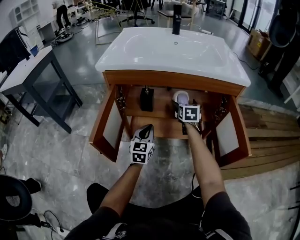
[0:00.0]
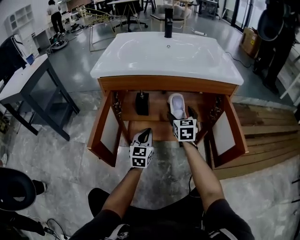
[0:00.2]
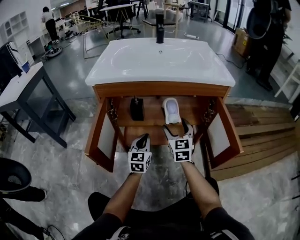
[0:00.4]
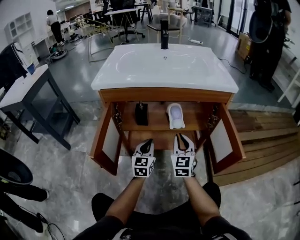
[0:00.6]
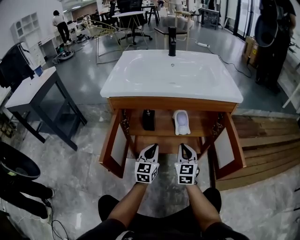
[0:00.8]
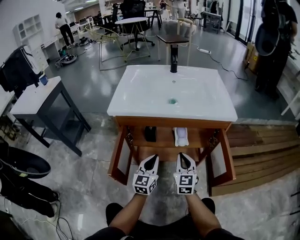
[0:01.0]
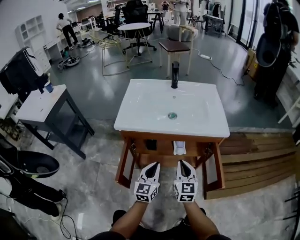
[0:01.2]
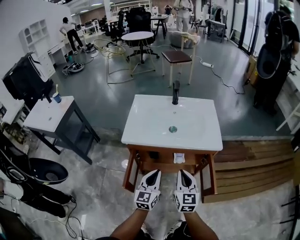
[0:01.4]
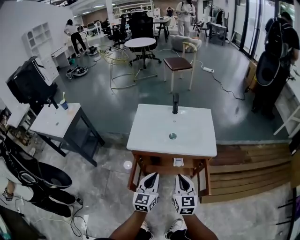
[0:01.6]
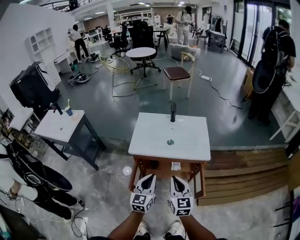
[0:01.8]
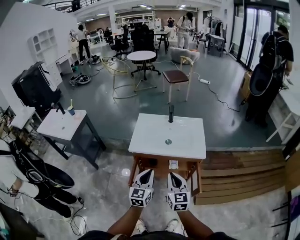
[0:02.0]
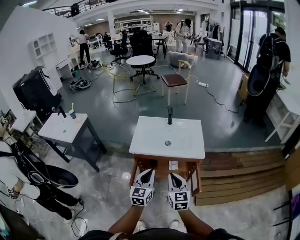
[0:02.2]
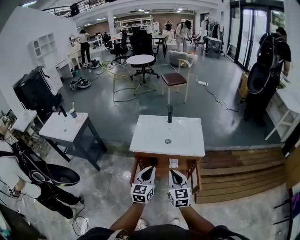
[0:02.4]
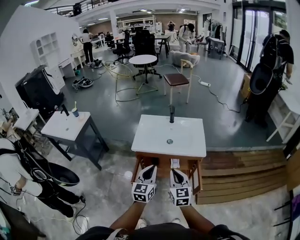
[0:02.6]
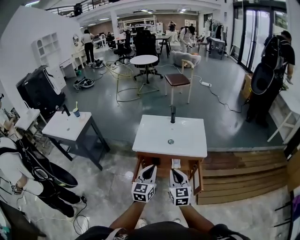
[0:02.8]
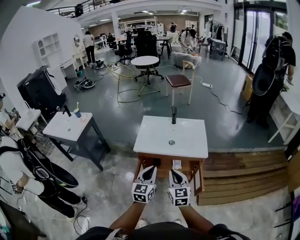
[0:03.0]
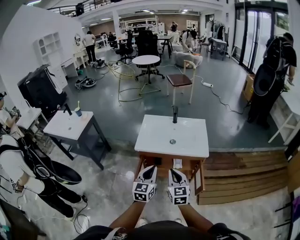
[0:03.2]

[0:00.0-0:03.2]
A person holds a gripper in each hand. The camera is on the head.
0:00.0 to 0:01.6: The right gripper travels upward and backward by approximately 50 cm, and closes; the left gripper is displaced upward by roughly 50 cm.
0:01.6 to 0:03.2: The grippers both shift upward and backward by some 10 cm.

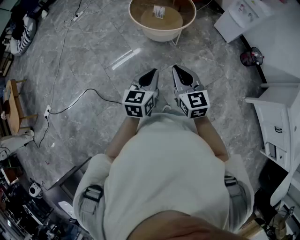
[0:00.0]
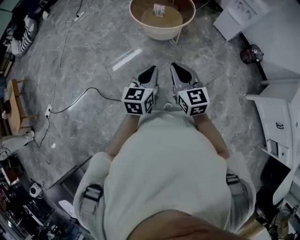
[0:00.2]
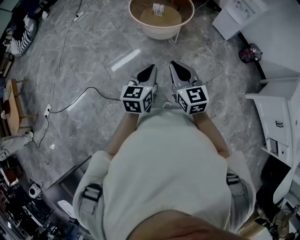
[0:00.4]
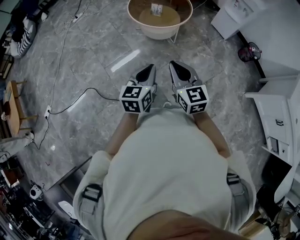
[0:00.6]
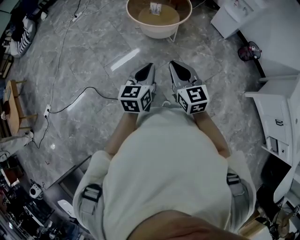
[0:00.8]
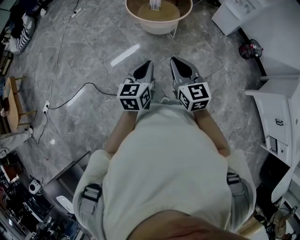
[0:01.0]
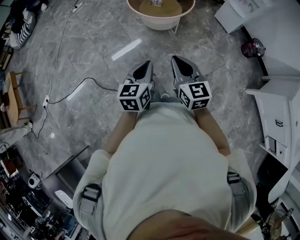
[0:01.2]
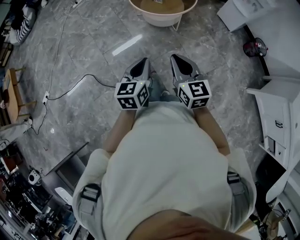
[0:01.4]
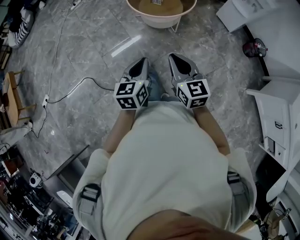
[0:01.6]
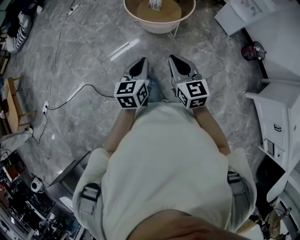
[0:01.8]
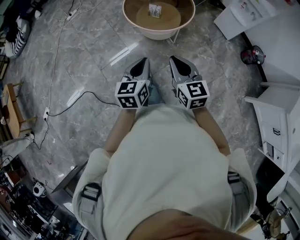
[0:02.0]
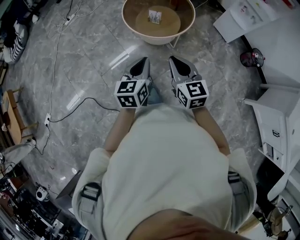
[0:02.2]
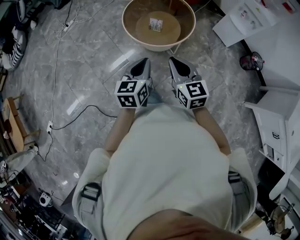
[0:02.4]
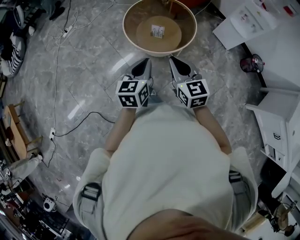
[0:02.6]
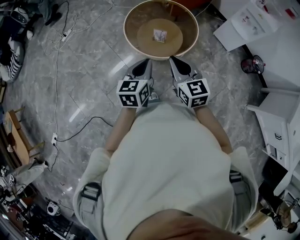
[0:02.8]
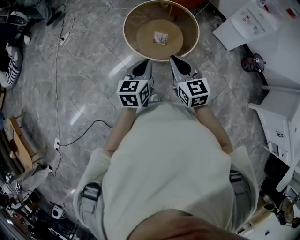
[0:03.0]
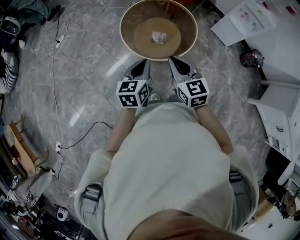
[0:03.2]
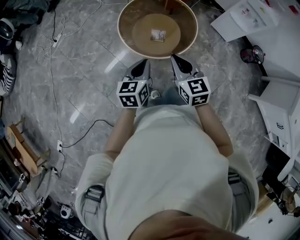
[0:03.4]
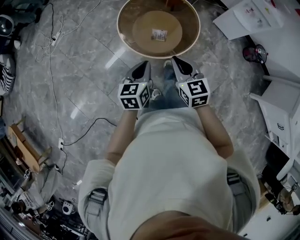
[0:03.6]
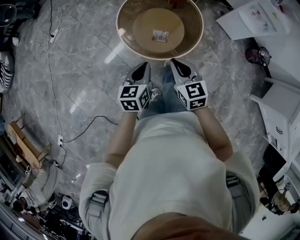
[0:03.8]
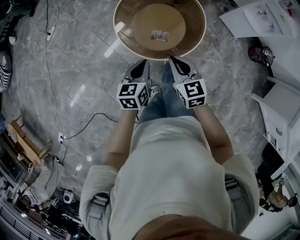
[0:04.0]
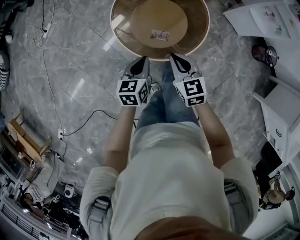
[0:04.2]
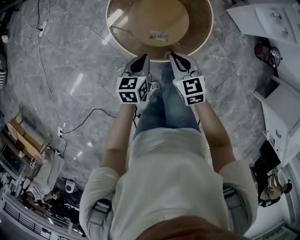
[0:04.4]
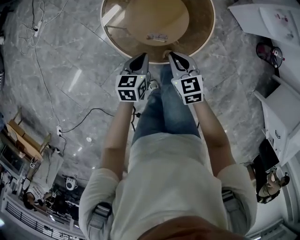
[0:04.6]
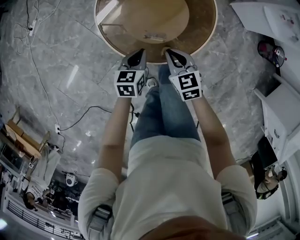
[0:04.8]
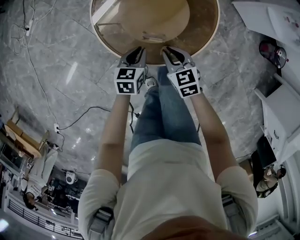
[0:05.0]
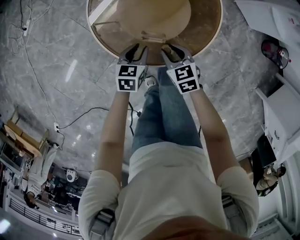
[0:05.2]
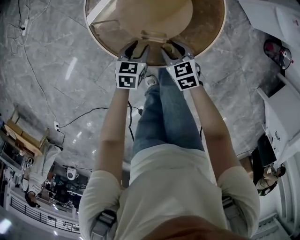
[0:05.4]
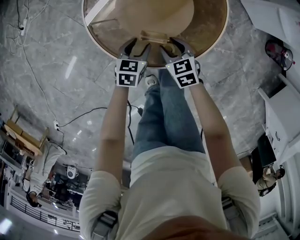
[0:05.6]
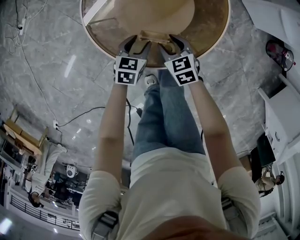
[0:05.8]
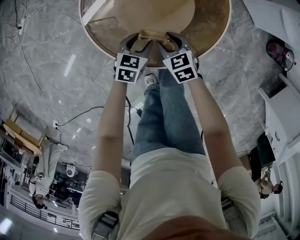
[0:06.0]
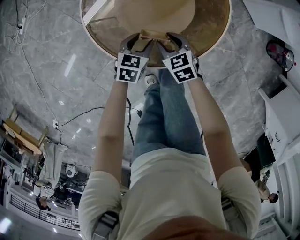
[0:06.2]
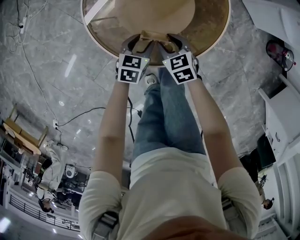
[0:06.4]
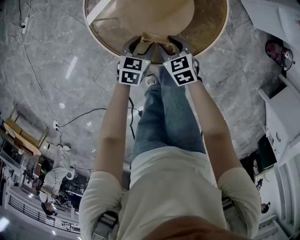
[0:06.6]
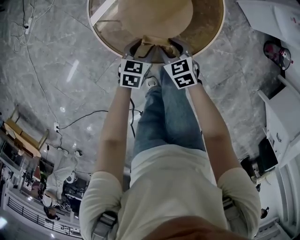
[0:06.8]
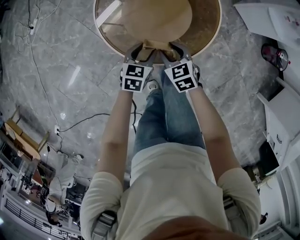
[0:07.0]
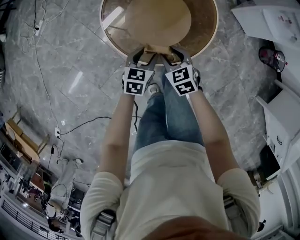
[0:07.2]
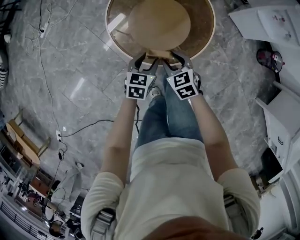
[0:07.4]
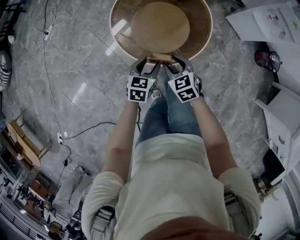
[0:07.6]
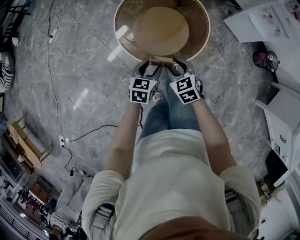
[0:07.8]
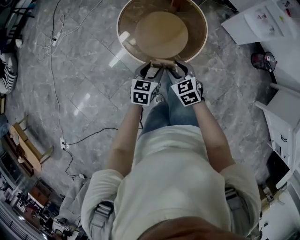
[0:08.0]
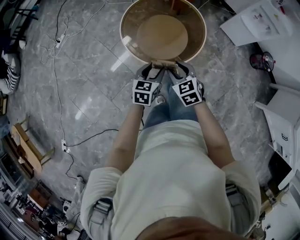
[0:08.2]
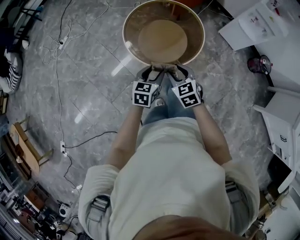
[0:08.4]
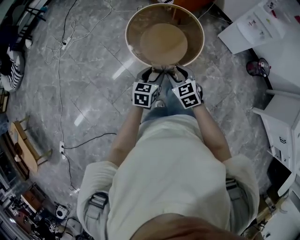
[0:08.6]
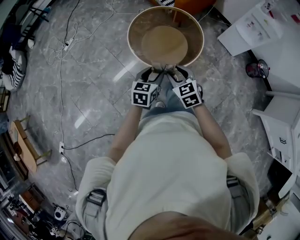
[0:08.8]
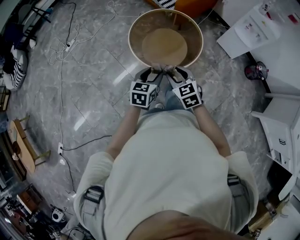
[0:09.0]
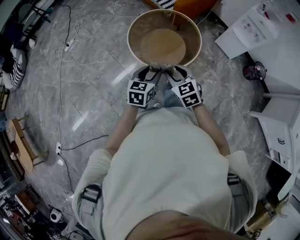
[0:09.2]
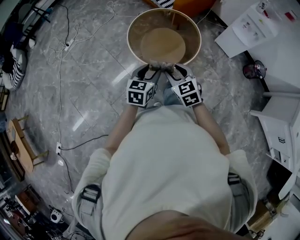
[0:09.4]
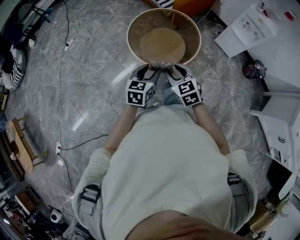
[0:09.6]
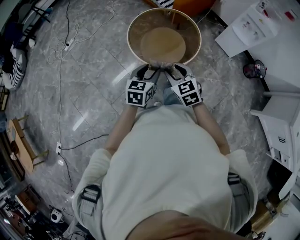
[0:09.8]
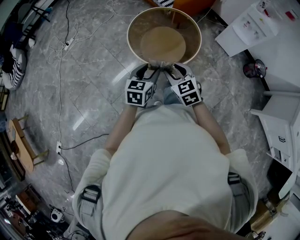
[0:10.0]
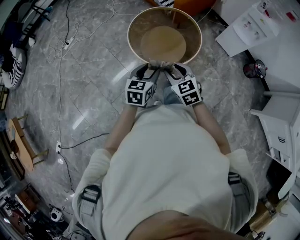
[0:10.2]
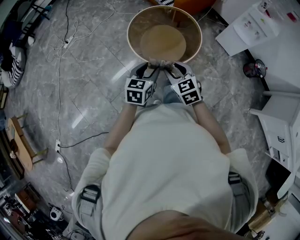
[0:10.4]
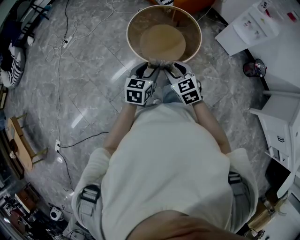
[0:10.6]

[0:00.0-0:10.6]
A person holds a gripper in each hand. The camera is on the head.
0:00.0 to 0:01.6: The grippers move only a little.
0:01.6 to 0:03.0: Both grippers move forward, some 35 cm.
0:03.0 to 0:04.6: Both grippers move downward and forward, some 30 cm. The left gripper rotates approximately 20 degrees; the right gripper rotates about 20 degrees.
0:04.6 to 0:06.0: The two grippers go about 20 cm downward. The right gripper opens up. Meanwhile the left gripper opens up.
0:06.0 to 0:07.6: Both grippers travel together upward and backward, approximately 20 cm.
0:07.6 to 0:09.0: The grippers both shift upward and backward by some 20 cm.
0:09.0 to 0:10.6: The grippers make only small movements.

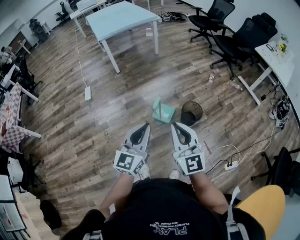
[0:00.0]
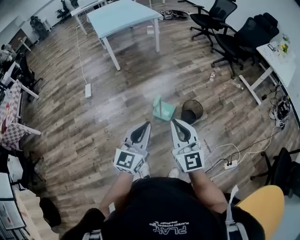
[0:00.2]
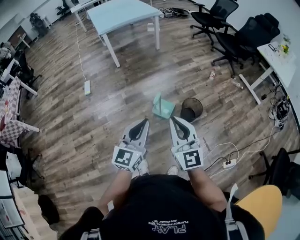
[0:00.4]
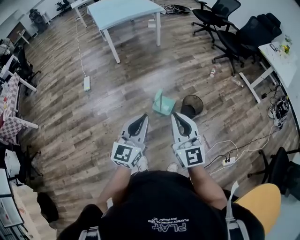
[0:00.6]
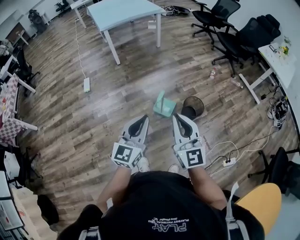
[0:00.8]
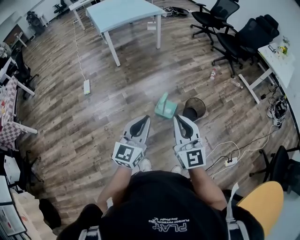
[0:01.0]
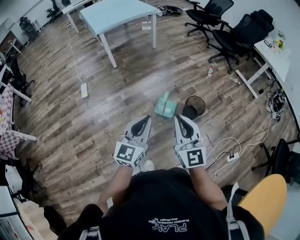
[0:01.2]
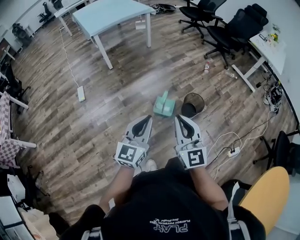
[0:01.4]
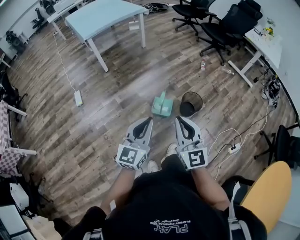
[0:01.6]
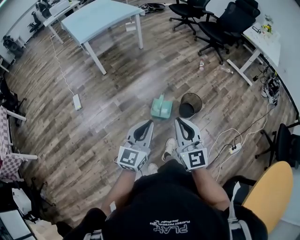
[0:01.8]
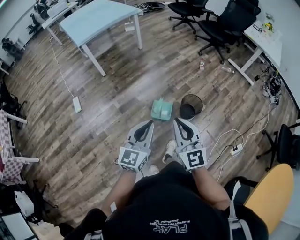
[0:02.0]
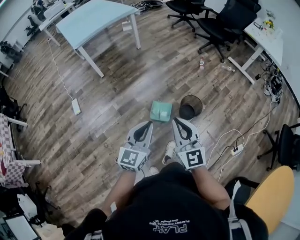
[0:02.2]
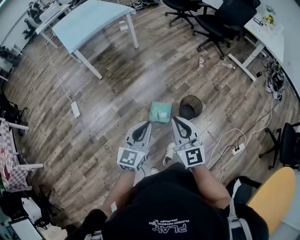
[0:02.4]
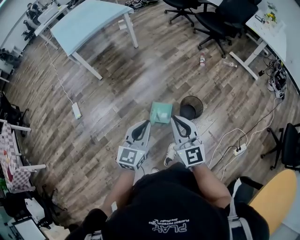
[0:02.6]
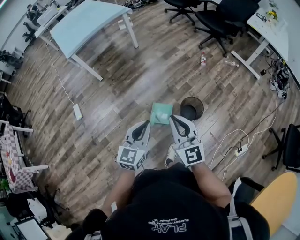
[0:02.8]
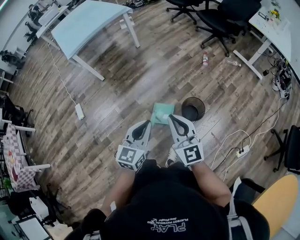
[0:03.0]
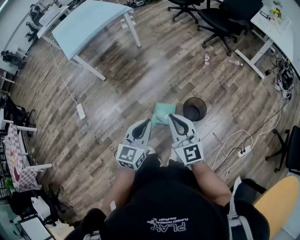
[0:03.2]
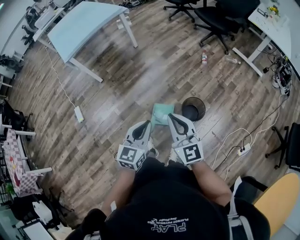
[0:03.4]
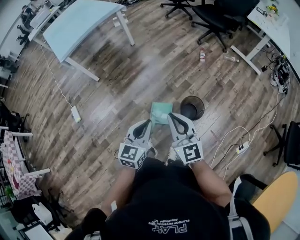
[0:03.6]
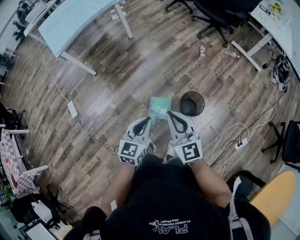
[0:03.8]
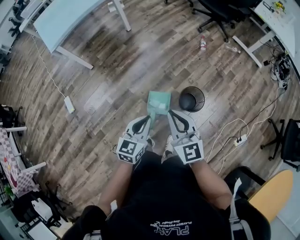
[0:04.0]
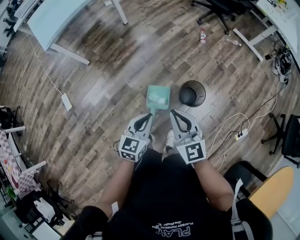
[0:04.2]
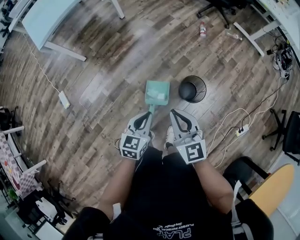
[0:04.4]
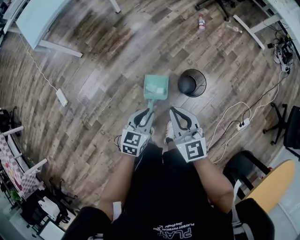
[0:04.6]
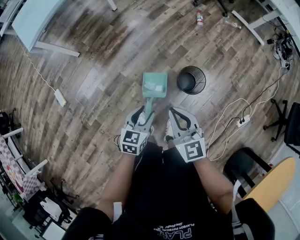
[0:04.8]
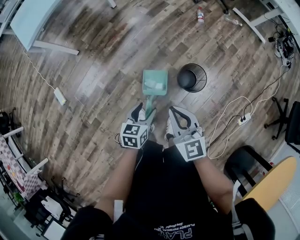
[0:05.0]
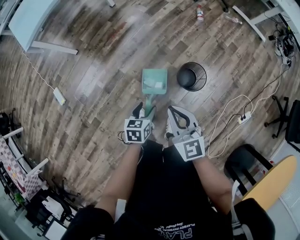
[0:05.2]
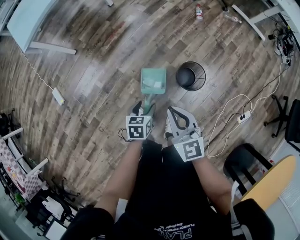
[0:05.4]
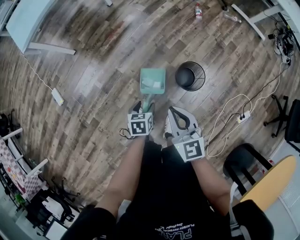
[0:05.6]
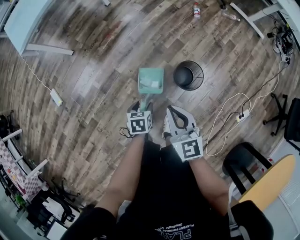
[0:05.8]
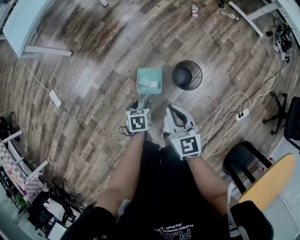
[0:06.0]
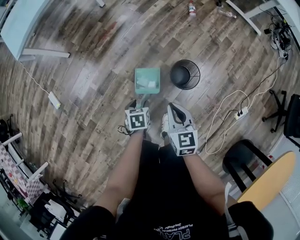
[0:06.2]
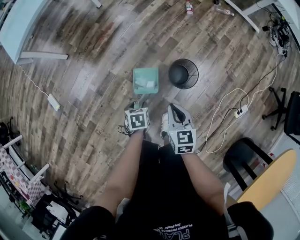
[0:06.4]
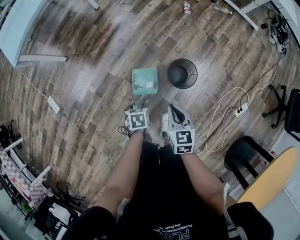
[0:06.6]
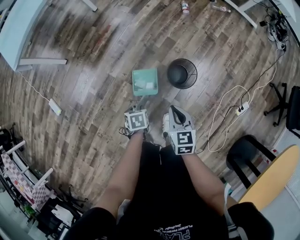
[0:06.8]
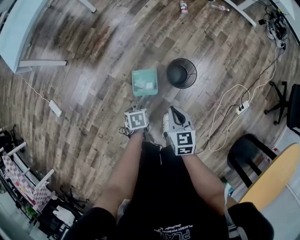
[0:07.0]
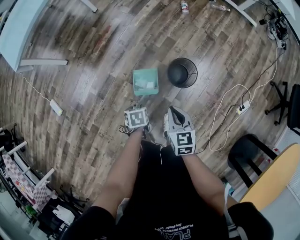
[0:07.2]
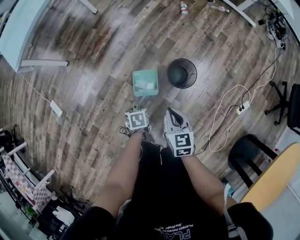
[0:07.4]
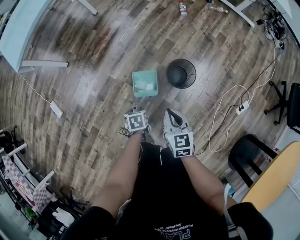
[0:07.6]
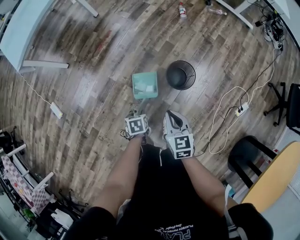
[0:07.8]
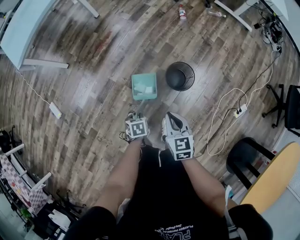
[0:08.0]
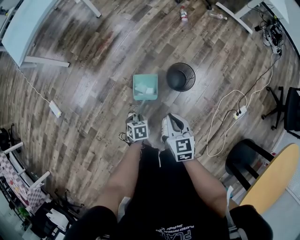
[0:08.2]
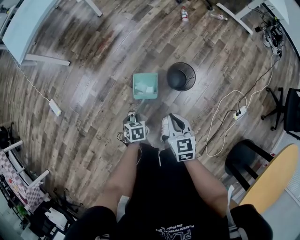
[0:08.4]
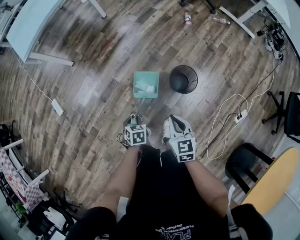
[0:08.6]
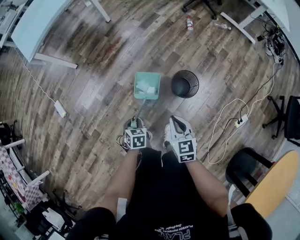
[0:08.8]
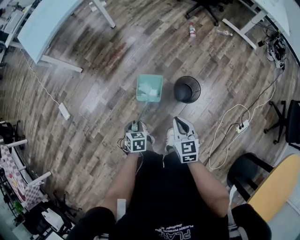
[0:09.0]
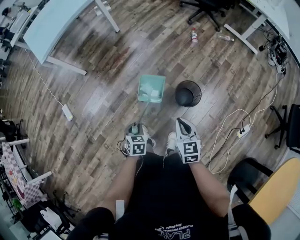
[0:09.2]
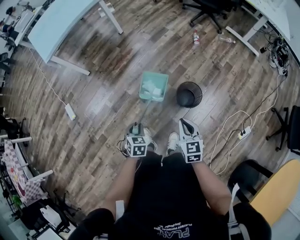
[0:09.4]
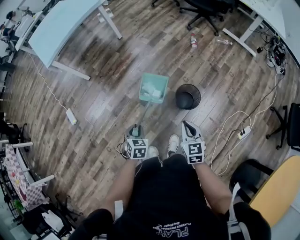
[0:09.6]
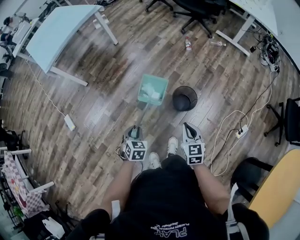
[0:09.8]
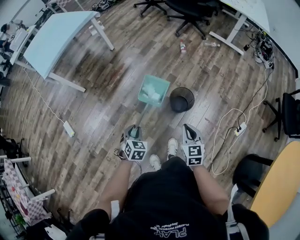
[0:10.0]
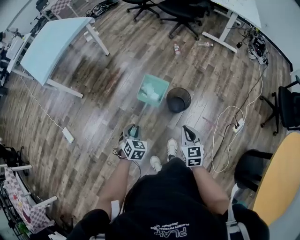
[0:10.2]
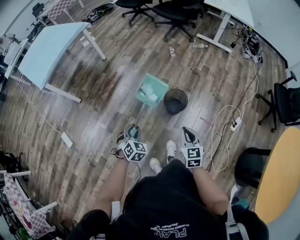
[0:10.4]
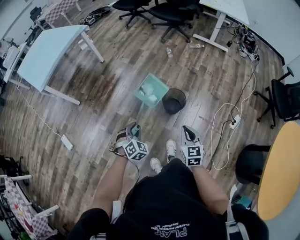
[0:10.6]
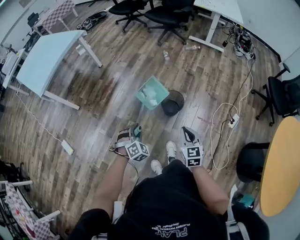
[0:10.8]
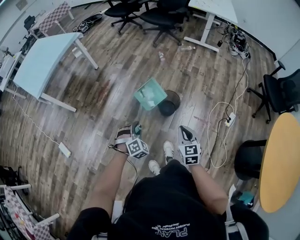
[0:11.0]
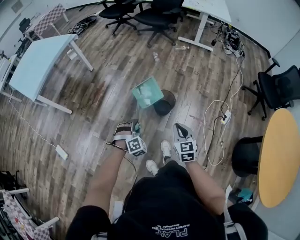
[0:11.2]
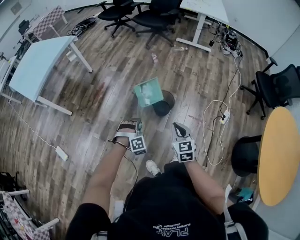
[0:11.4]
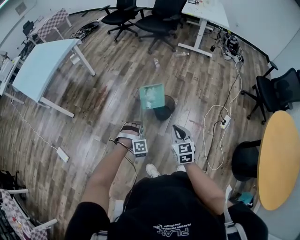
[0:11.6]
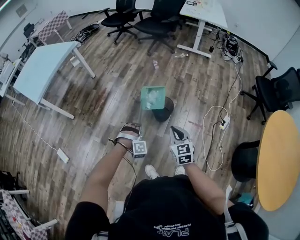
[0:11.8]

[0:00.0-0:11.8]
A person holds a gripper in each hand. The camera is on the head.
0:00.0 to 0:01.4: Both grippers move to the left, roughly 10 cm.
0:01.4 to 0:03.0: The two grippers go some 25 cm forward and to the right.
0:03.0 to 0:04.4: The two grippers go some 15 cm downward and forward.
0:04.4 to 0:06.0: The left gripper goes some 20 cm downward, points its fingers approximately 30 degrees further downward, and opens up. Meanwhile the right gripper moves downward, about 10 cm.
0:06.0 to 0:07.4: The left gripper closes; the right gripper goes about 5 cm downward.
0:07.4 to 0:08.8: The left gripper shifts by about 10 cm; the right gripper moves about 5 cm.
0:08.8 to 0:10.4: The right gripper heads backward, to the right and upward, covering approximately 15 cm. The left gripper travels upward by some 15 cm, and twists approximately 40 degrees clockwise, seen from behind.
0:10.4 to 0:11.8: The left gripper goes some 10 cm to the right, and rotates around the line of its fingers by some 70 degrees, clockwise from behind; the right gripper goes roughly 5 cm backward.
